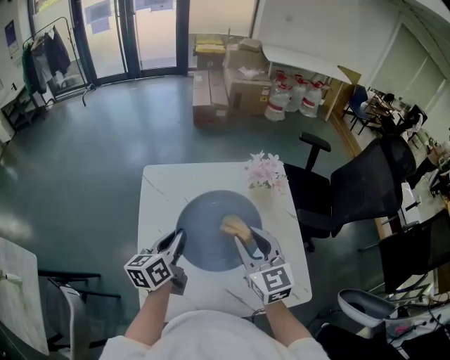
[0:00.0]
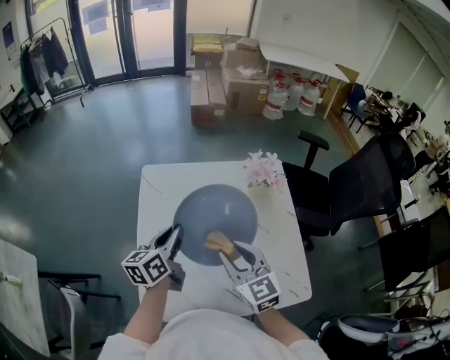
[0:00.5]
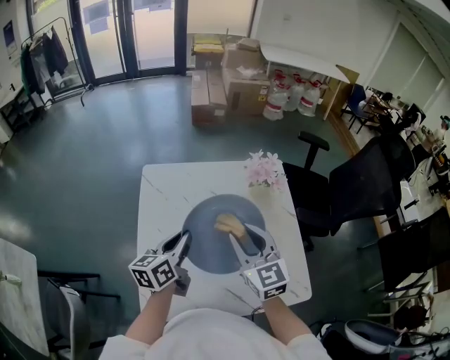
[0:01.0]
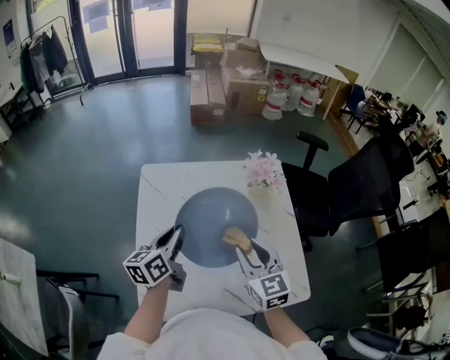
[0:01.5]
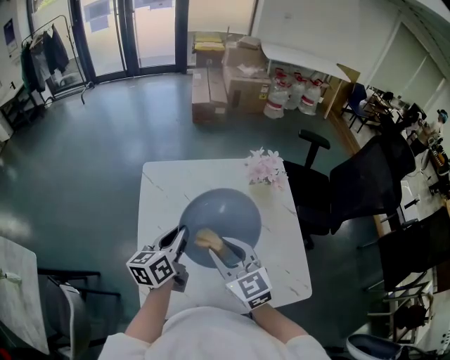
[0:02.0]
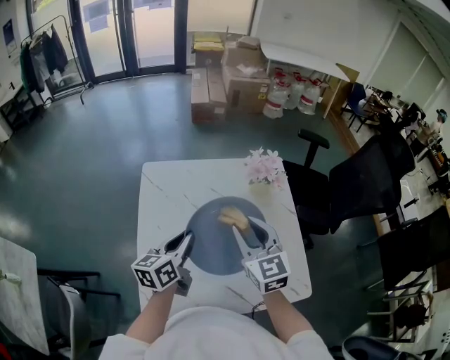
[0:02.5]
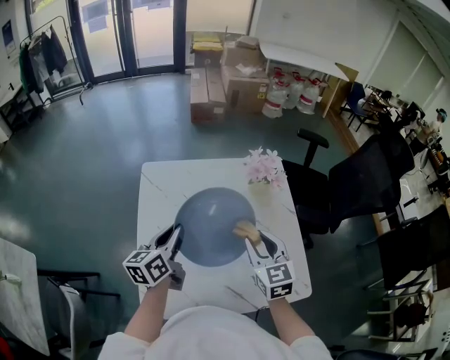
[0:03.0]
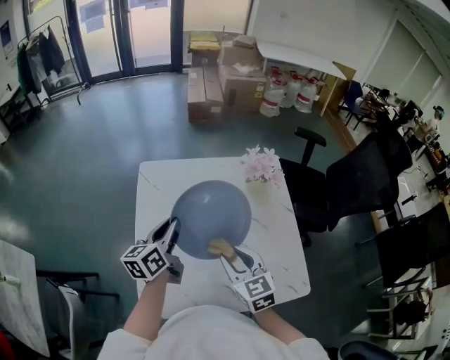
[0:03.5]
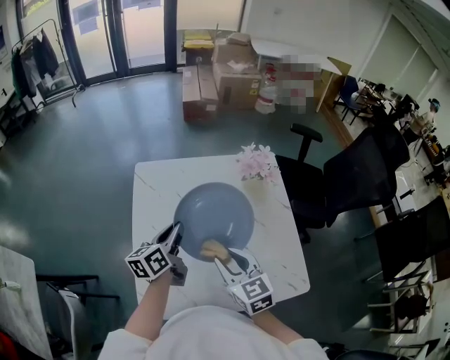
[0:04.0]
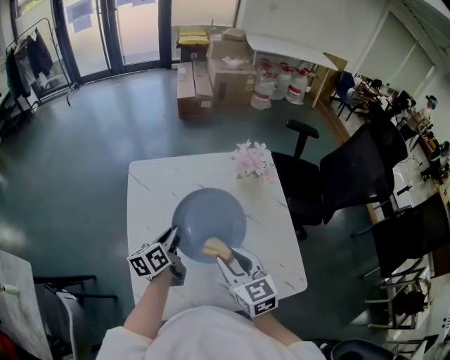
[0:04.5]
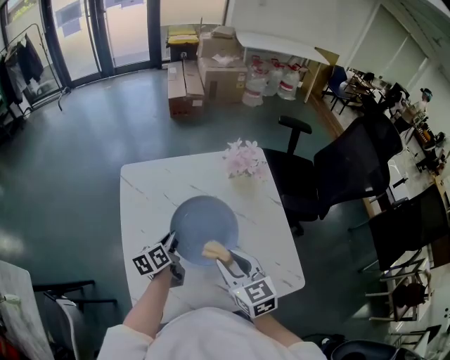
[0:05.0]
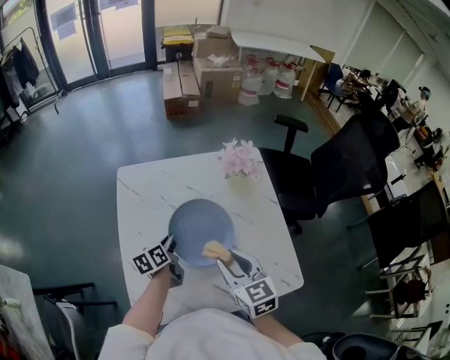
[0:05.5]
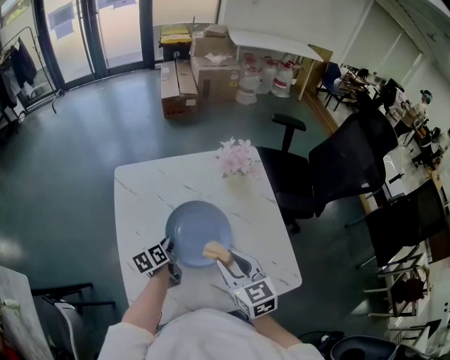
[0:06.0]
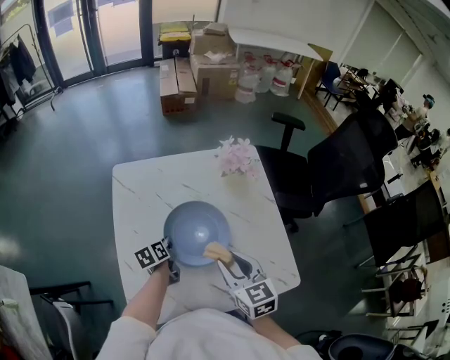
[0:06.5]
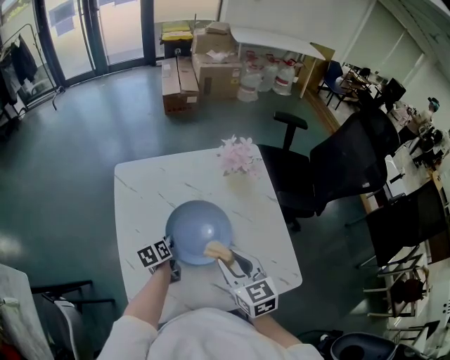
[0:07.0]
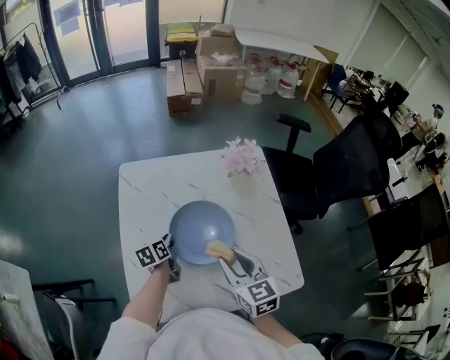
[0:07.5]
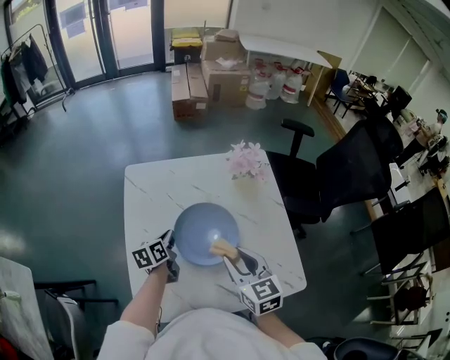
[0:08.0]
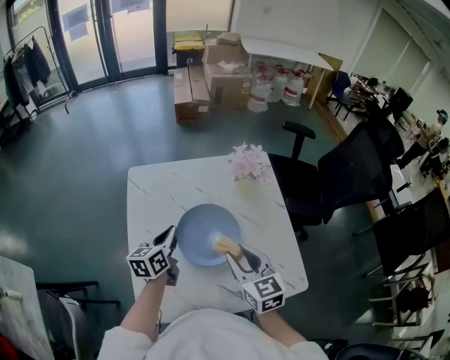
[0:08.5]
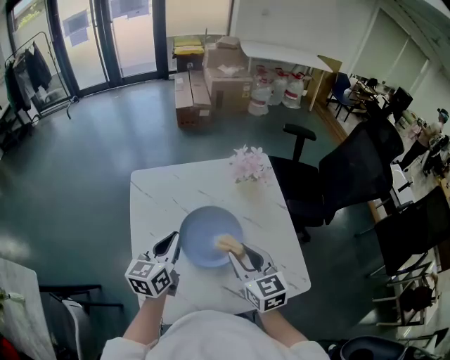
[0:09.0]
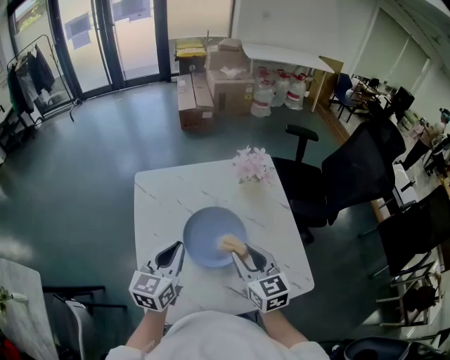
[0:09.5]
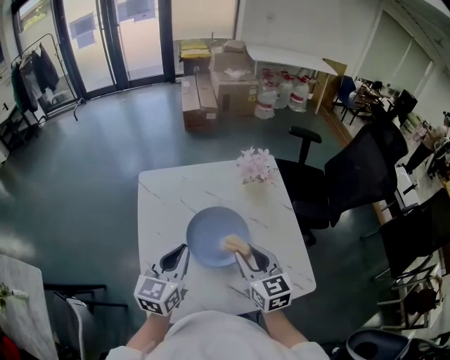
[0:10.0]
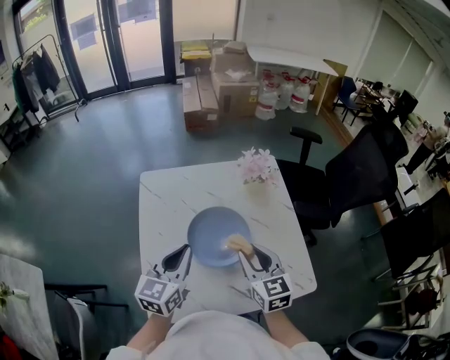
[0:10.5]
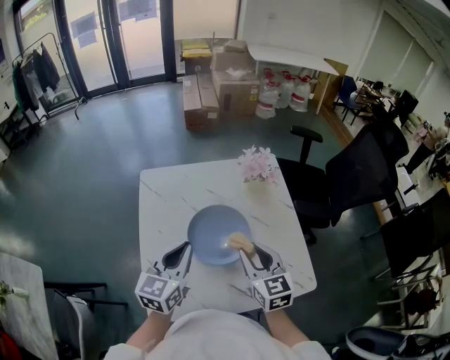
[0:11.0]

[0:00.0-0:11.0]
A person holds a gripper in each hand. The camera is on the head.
0:00.0 to 0:02.0: The right gripper swings left and right, about 10 cm each way, with 2 reversals.
0:03.5 to 0:05.5: The left gripper is displaced downward by approximately 15 cm, and changes its angle by about 20 degrees.
0:05.5 to 0:07.5: The grippers move only a little.
0:07.5 to 0:09.0: The left gripper travels upward by about 20 cm, and turns by roughly 40 degrees.
0:09.0 to 0:11.0: The left gripper travels backward by about 5 cm.

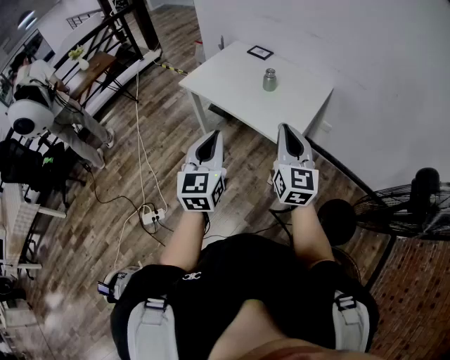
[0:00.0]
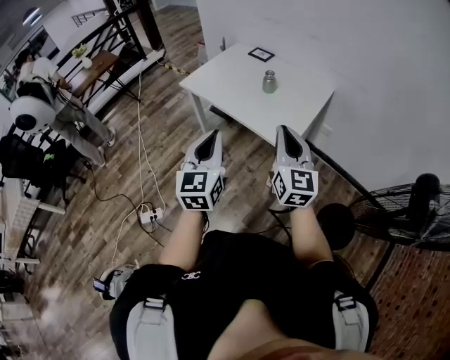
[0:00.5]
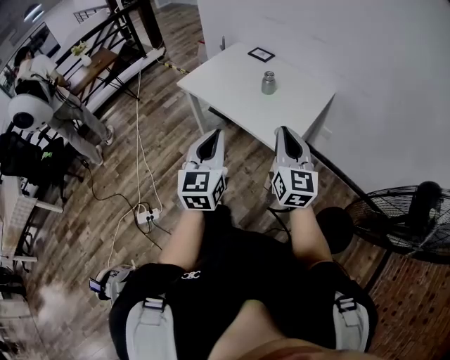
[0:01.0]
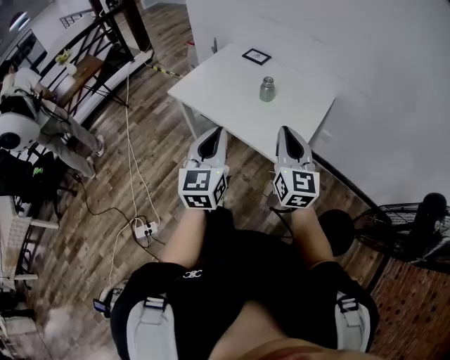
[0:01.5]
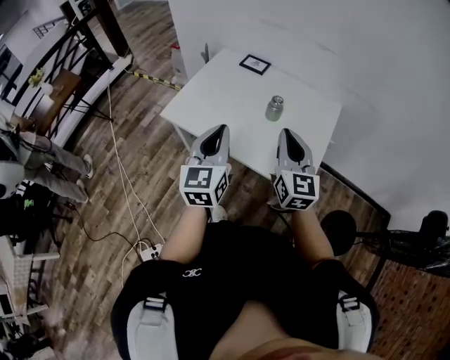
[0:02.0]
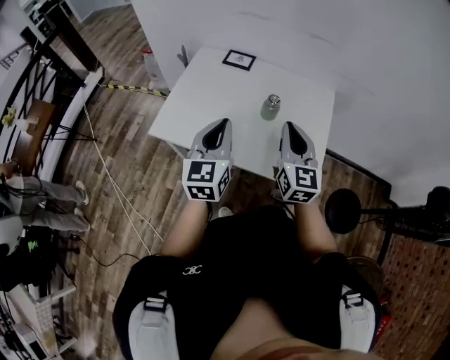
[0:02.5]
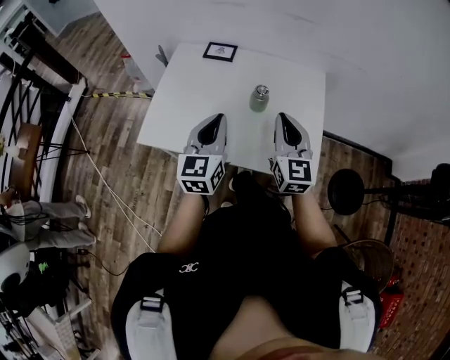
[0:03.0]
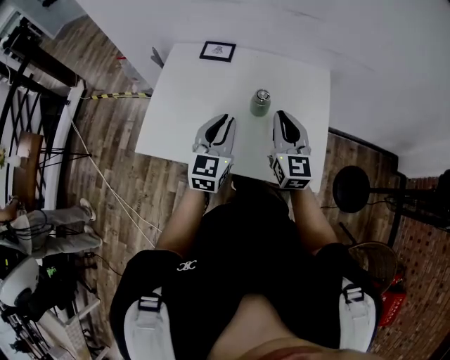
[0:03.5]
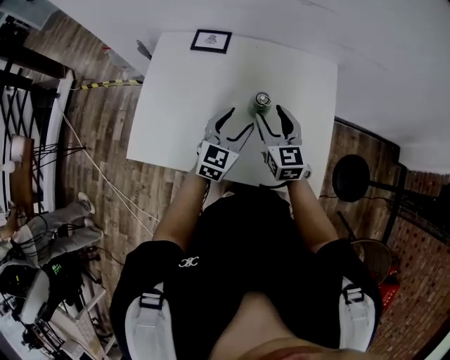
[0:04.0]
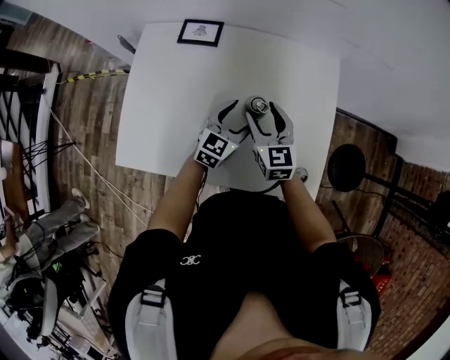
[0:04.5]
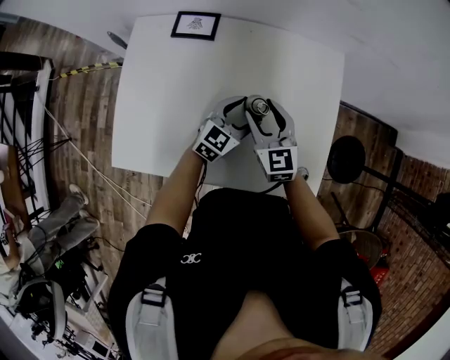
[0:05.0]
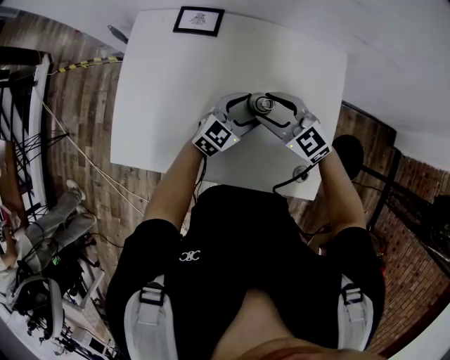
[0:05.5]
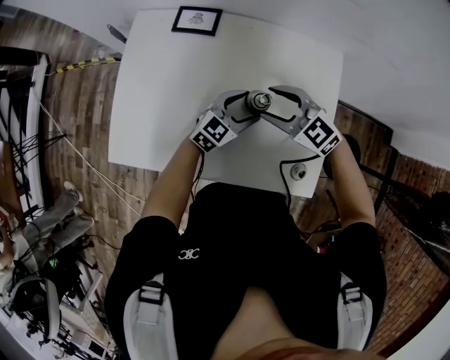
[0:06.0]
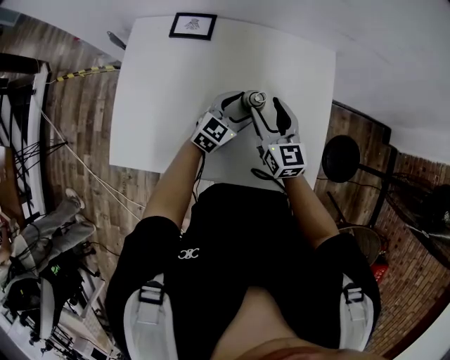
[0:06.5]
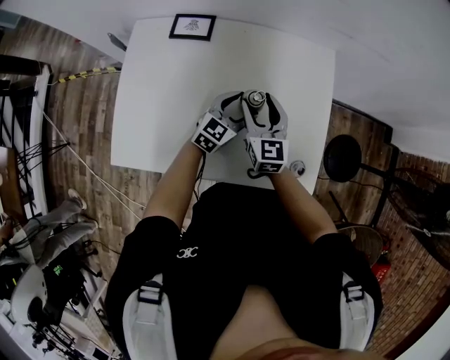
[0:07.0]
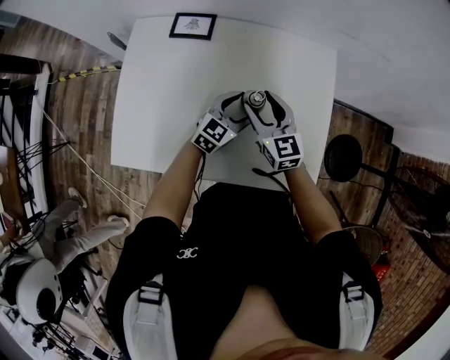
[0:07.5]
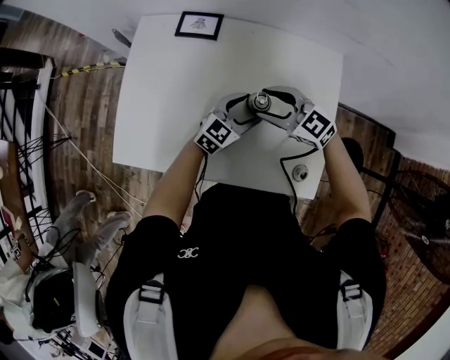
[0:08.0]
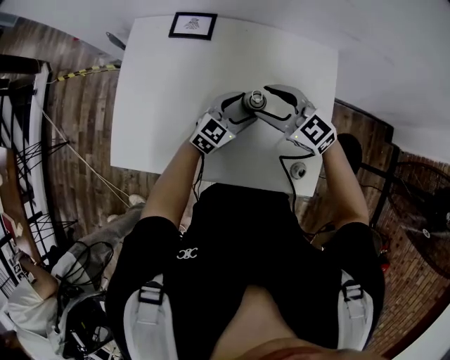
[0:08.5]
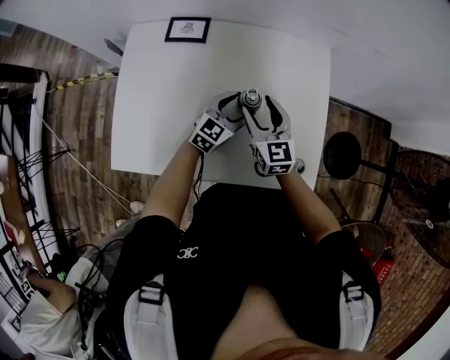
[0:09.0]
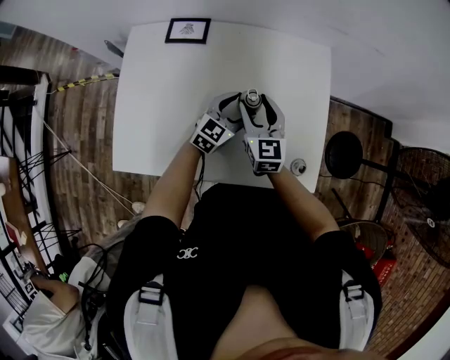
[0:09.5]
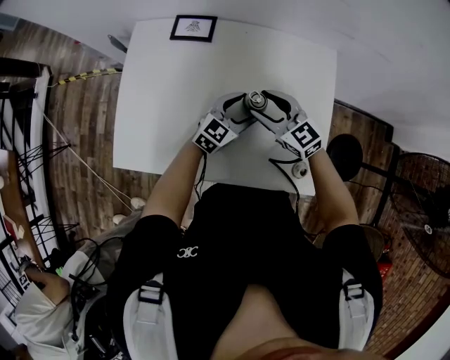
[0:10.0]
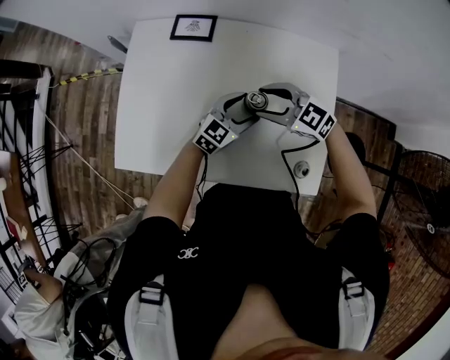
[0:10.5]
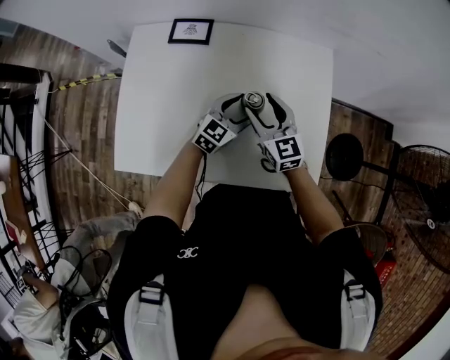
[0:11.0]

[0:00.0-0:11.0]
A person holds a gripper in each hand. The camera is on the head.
0:00.0 to 0:02.0: Both grippers move forward, some 30 cm.
0:02.0 to 0:03.5: Both grippers travel together forward and downward, roughly 20 cm. The left gripper changes its angle by about 30 degrees.
0:03.5 to 0:05.5: The right gripper moves downward, forward and to the left, approximately 20 cm, turns by about 50 degrees, and opens, while the left gripper travels downward, forward and to the right by approximately 25 cm, changes its angle by roughly 40 degrees, and opens.
0:05.5 to 0:07.5: The right gripper rotates roughly 30 degrees.

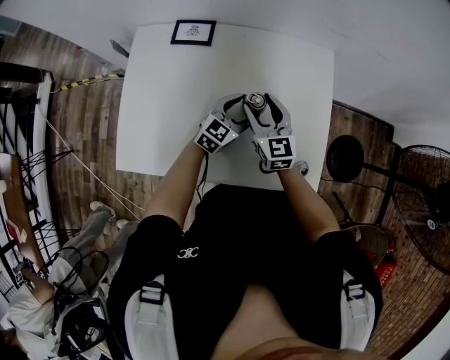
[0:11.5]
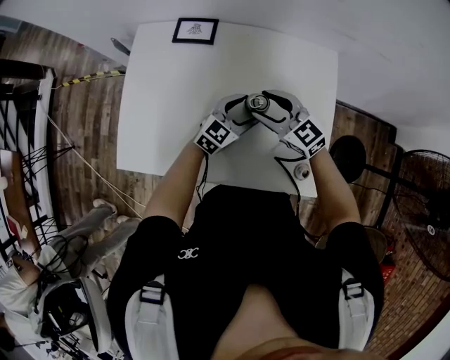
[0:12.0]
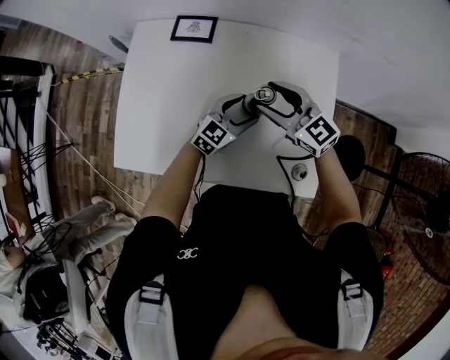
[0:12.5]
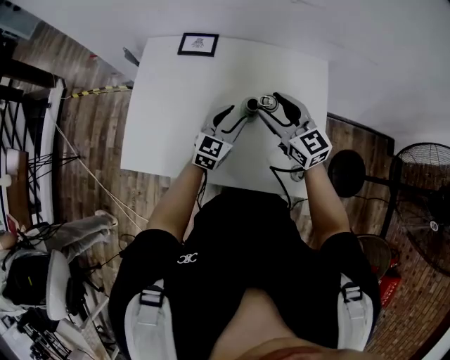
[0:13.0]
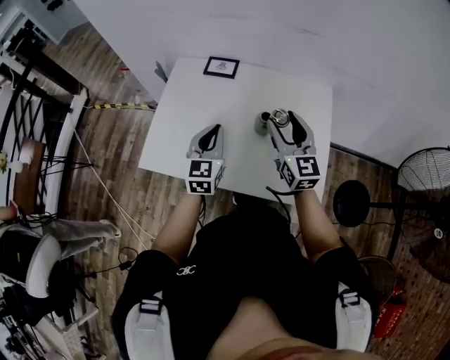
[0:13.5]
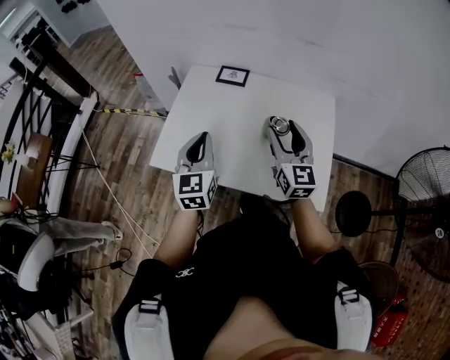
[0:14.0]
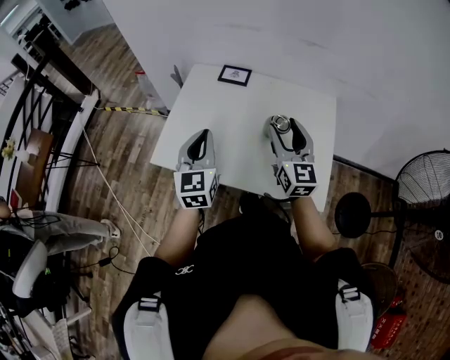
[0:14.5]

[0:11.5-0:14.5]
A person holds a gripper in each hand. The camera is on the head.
0:11.5 to 0:13.0: The left gripper moves upward, some 5 cm; the right gripper is displaced upward by some 10 cm, and swivels roughly 20 degrees.
0:13.0 to 0:14.5: The left gripper travels to the left, upward and backward by some 30 cm, turns by roughly 40 degrees, and closes. The right gripper is displaced backward, upward and to the left by approximately 15 cm, and rotates about 20 degrees.

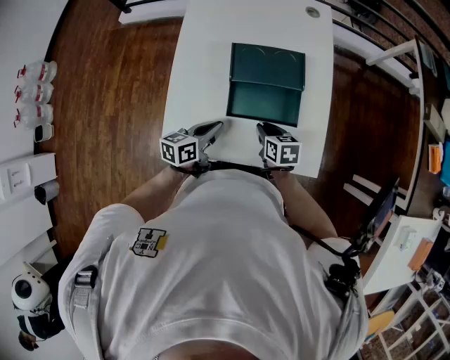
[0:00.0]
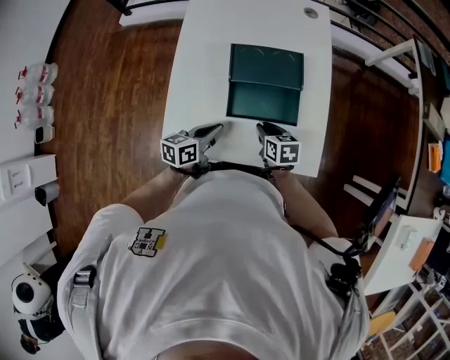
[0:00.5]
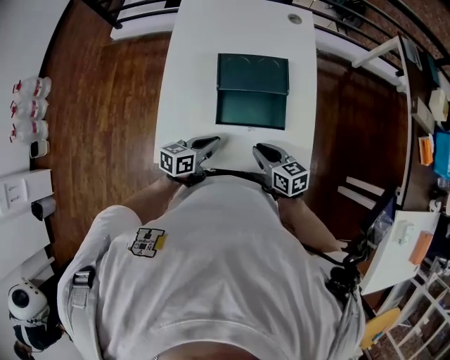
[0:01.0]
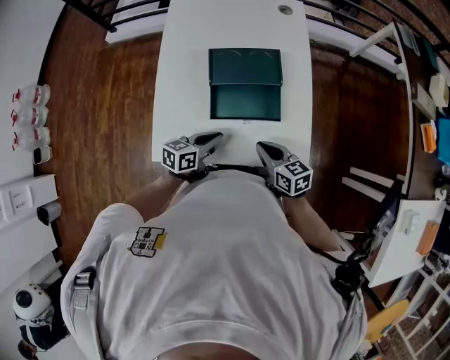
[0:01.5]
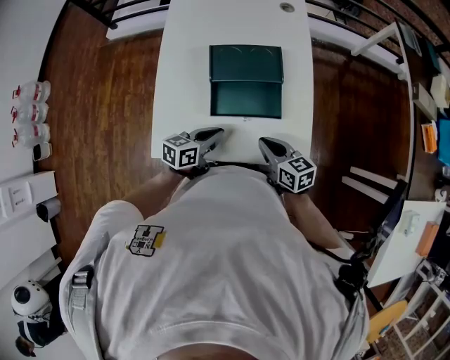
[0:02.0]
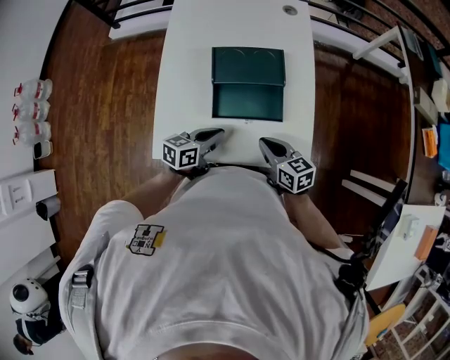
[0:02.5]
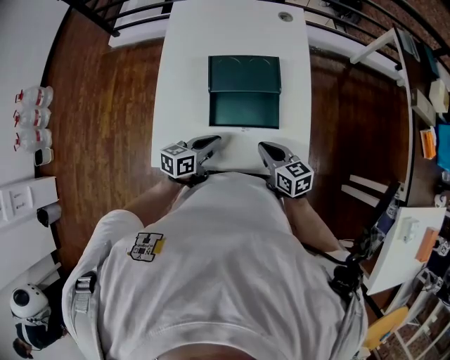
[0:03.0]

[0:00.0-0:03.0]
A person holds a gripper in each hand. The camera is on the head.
0:00.0 to 0:01.5: The right gripper goes approximately 10 cm backward, upward and to the right, while the left gripper shifts roughly 5 cm to the right.
0:01.5 to 0:03.0: The grippers move only a little.
